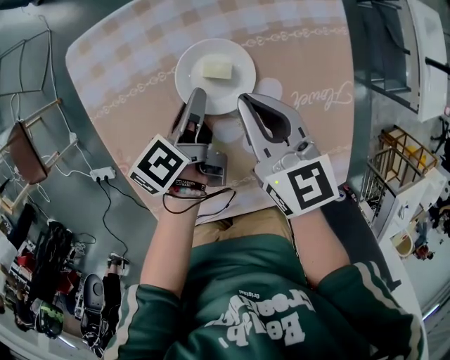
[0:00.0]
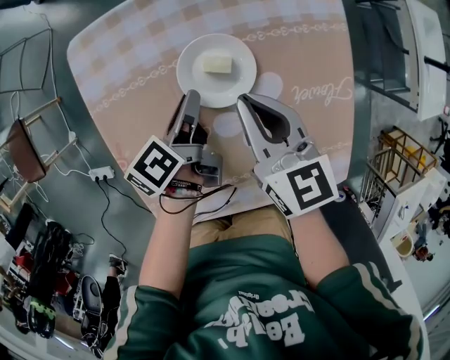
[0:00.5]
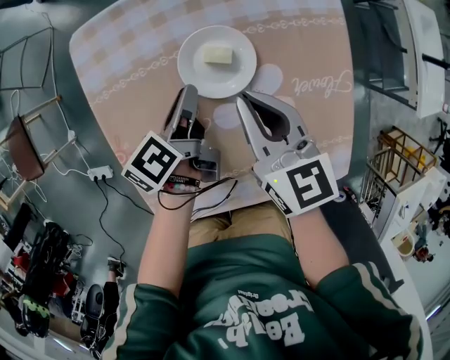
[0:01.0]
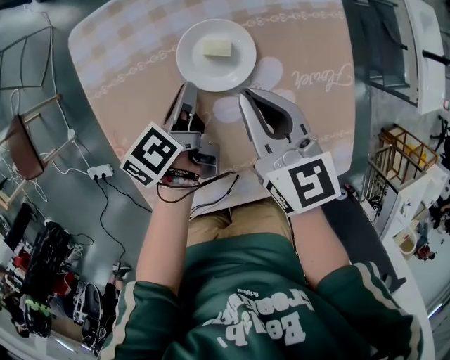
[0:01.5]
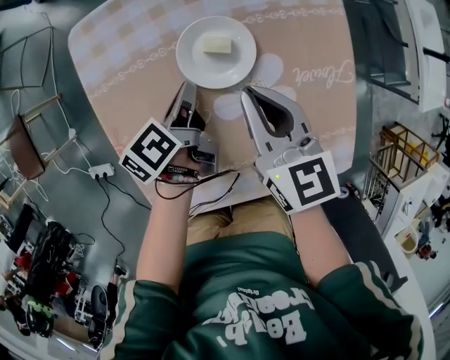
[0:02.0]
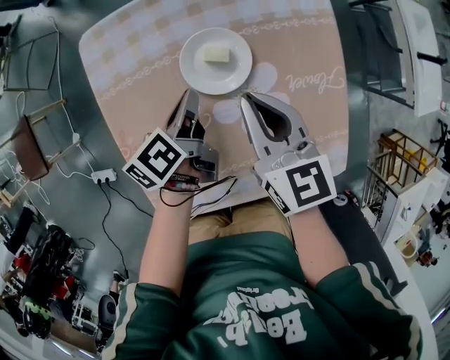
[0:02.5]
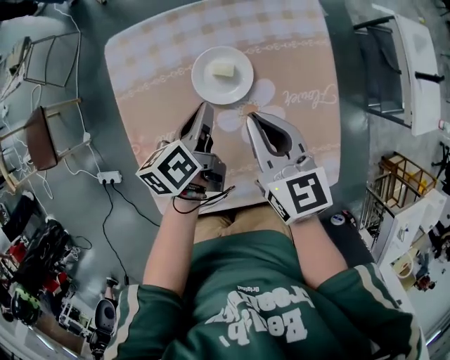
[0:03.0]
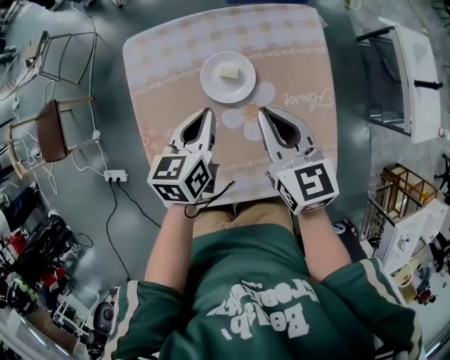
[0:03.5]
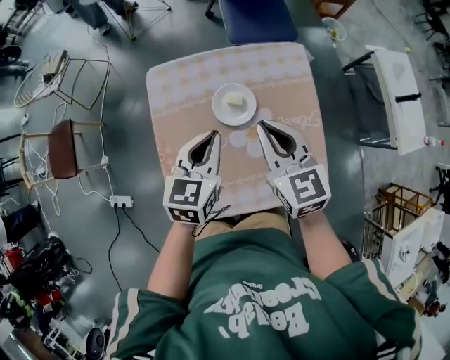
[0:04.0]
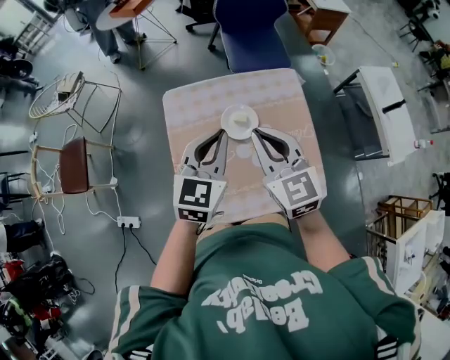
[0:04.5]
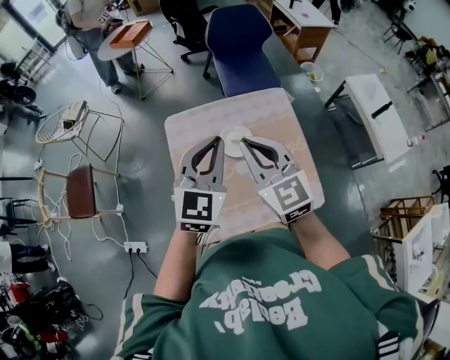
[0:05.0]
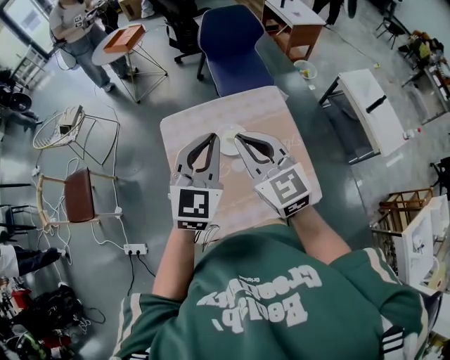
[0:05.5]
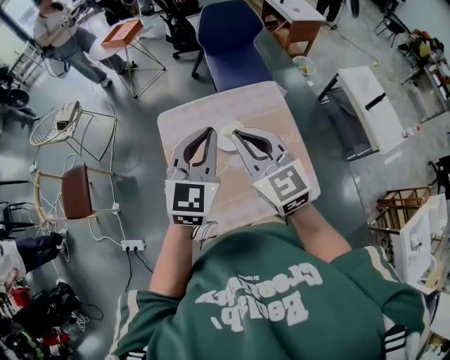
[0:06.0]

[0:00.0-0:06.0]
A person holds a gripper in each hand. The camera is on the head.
0:02.0 to 0:04.0: The right gripper goes about 15 cm upward.
0:04.0 to 0:06.0: The right gripper is displaced upward by approximately 15 cm.

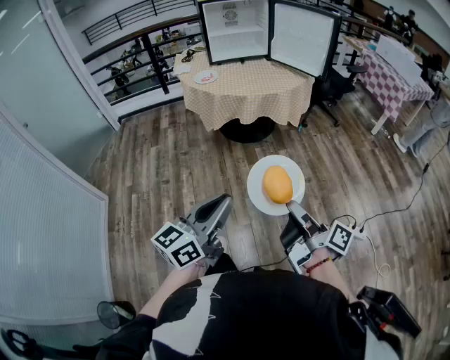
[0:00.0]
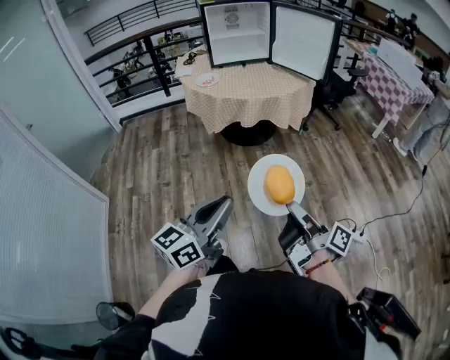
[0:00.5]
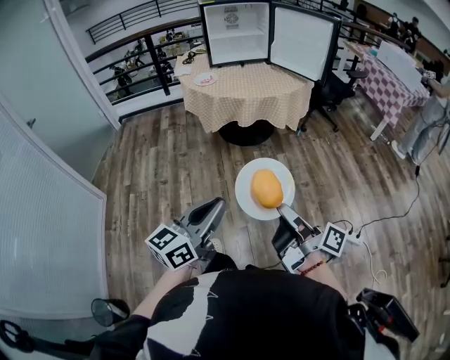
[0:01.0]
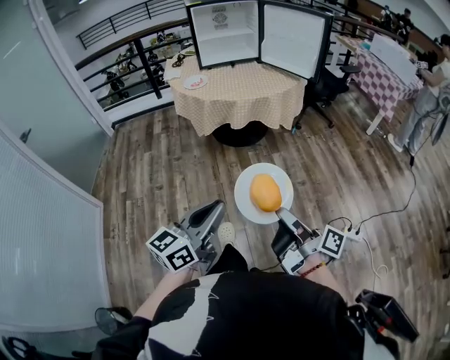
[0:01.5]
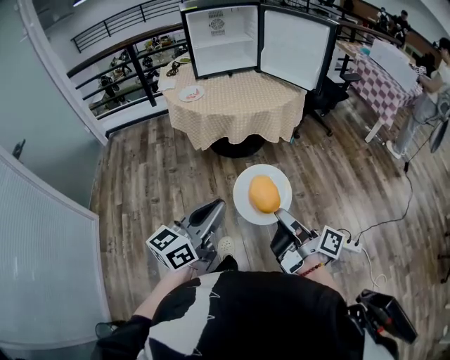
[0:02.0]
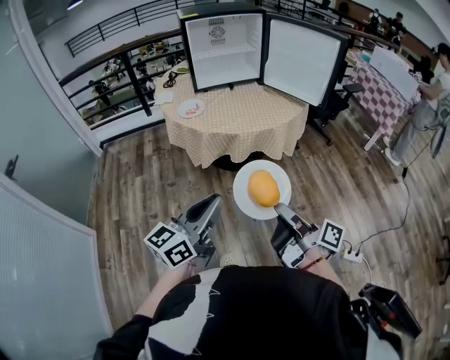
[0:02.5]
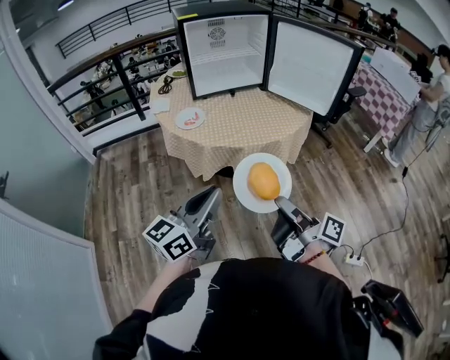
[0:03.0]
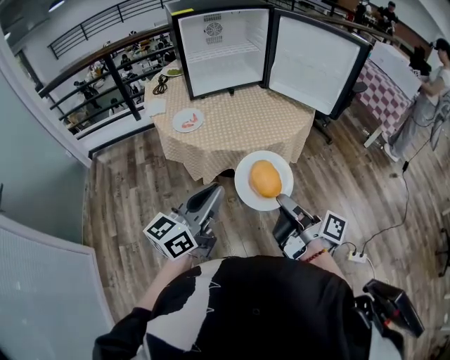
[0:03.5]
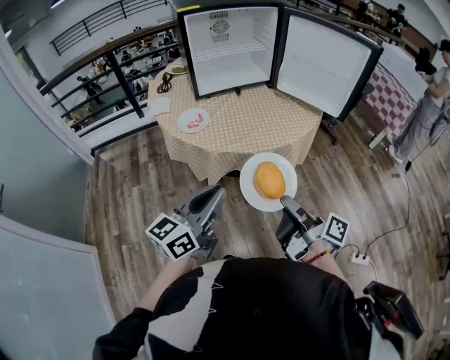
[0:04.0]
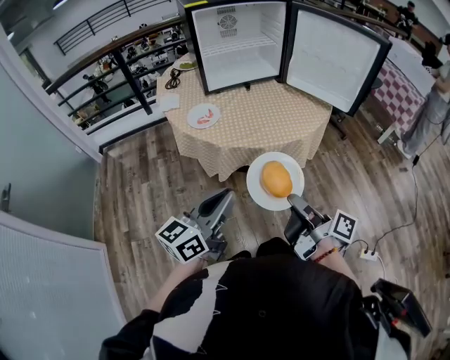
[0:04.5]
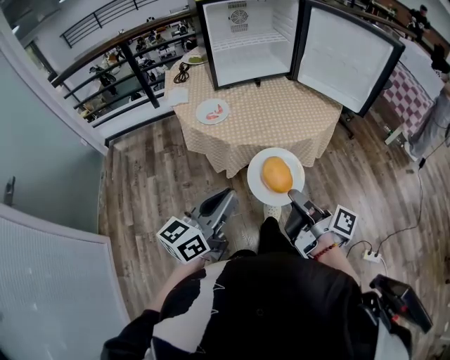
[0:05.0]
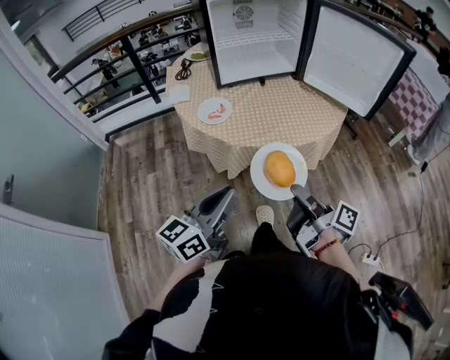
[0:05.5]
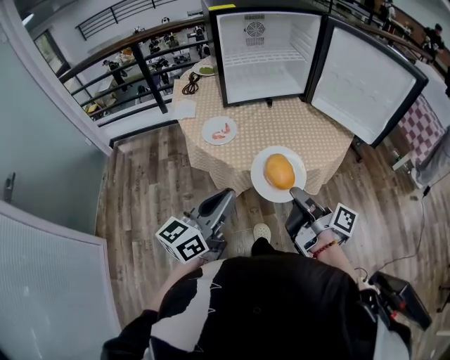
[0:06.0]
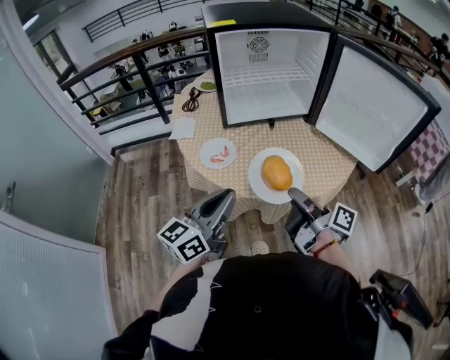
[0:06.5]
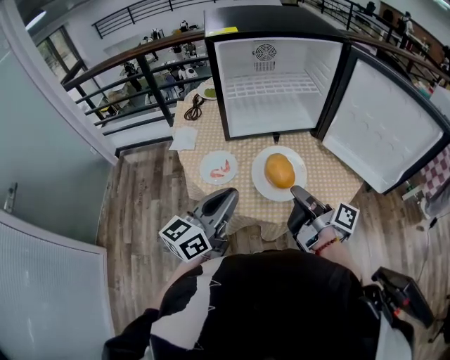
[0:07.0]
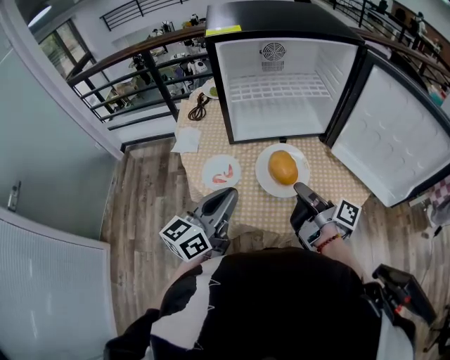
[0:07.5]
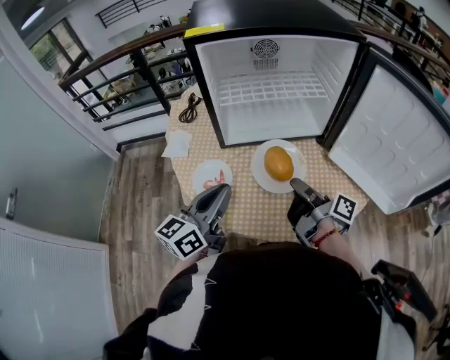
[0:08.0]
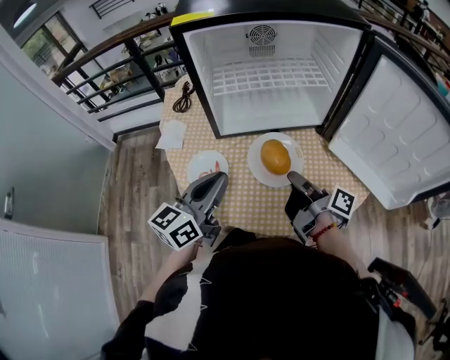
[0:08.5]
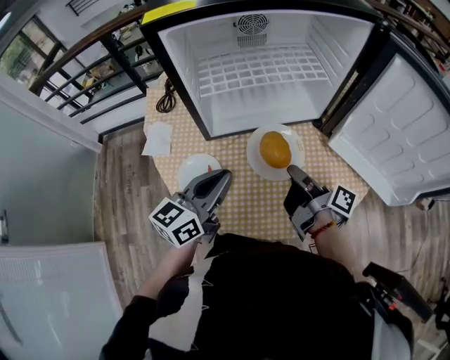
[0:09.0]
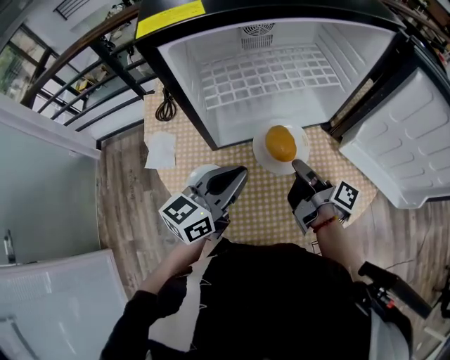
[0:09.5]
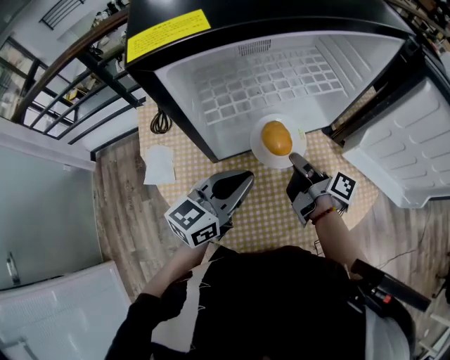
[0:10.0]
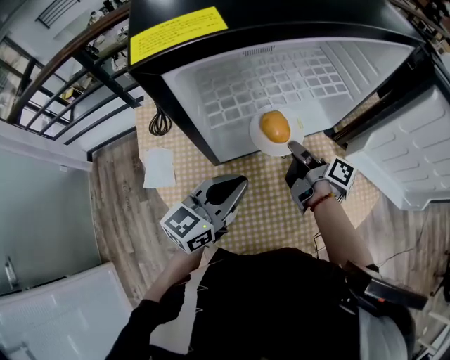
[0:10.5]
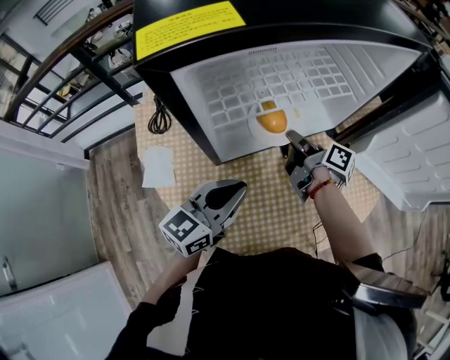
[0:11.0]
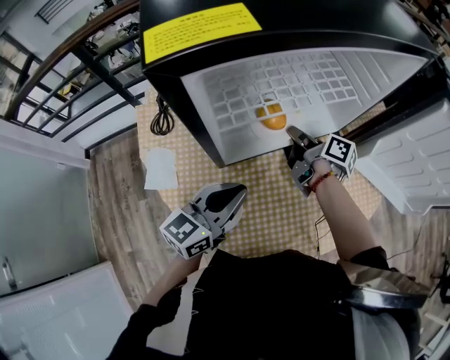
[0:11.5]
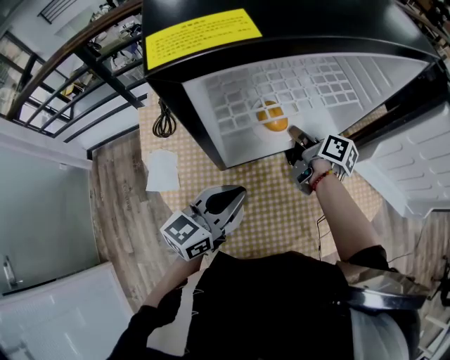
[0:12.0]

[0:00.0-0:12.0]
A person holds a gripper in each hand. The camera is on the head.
0:00.0 to 0:02.0: The grippers both shift forward by some 10 cm.
0:02.0 to 0:04.0: The two grippers go approximately 30 cm forward and to the left.
0:04.0 to 0:06.0: The left gripper heads forward, covering about 10 cm. The right gripper goes roughly 15 cm forward.
0:06.0 to 0:08.0: Both grippers travel together forward, approximately 30 cm.
0:08.0 to 0:10.0: The left gripper shifts about 15 cm forward, and turns by roughly 30 degrees. Meanwhile the right gripper travels forward and downward by some 15 cm.
0:10.0 to 0:12.0: The right gripper heads forward, covering some 10 cm. The left gripper moves roughly 5 cm.

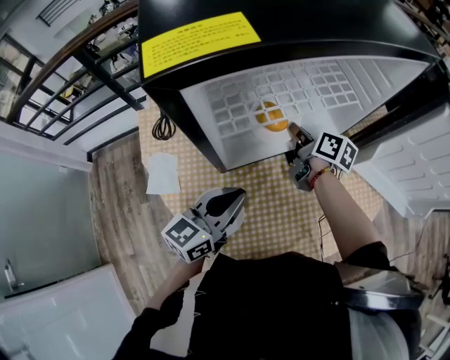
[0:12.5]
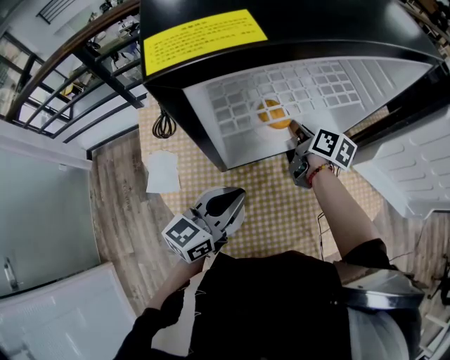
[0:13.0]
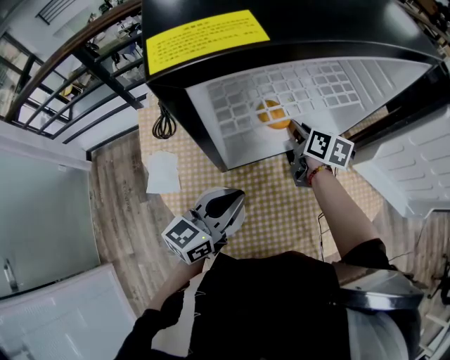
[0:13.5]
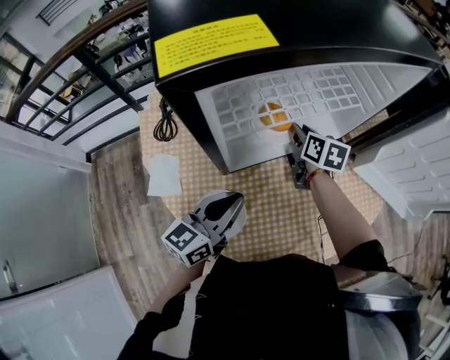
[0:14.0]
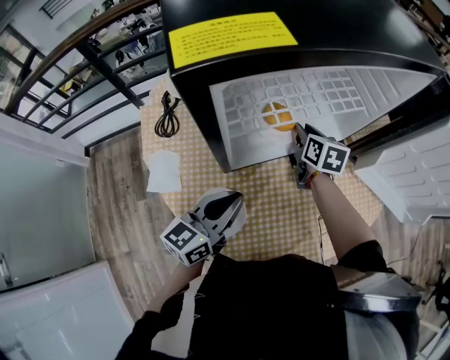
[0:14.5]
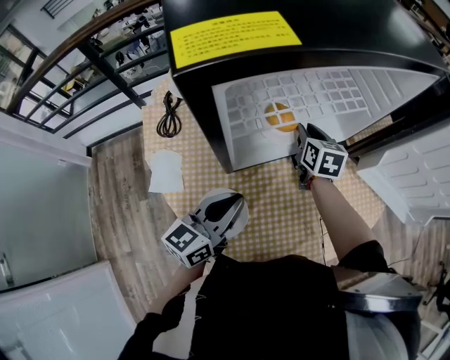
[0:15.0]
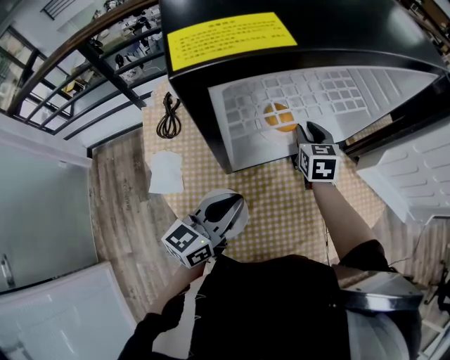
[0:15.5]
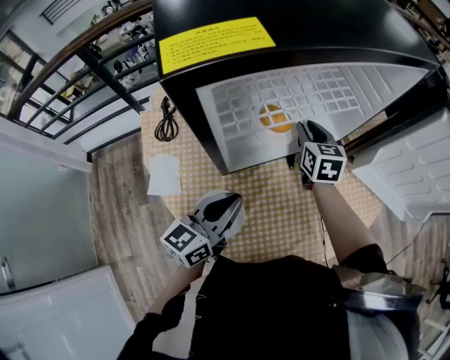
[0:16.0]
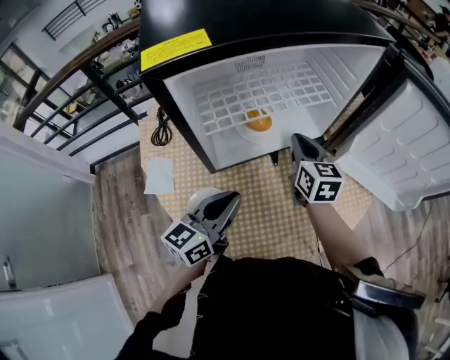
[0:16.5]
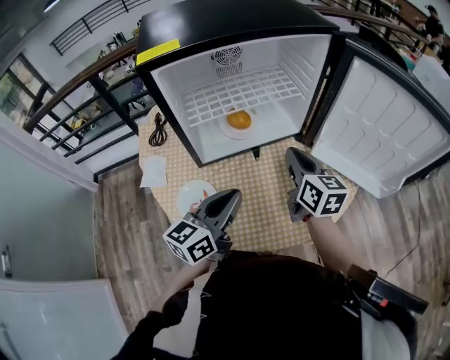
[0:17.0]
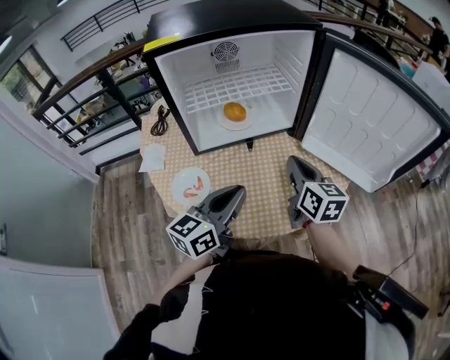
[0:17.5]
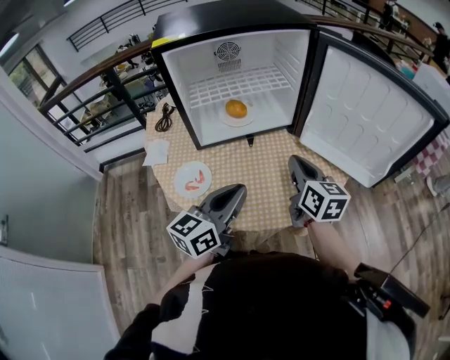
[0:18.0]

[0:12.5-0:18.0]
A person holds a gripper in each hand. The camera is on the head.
0:12.5 to 0:14.5: The right gripper changes its angle by about 30 degrees, and opens up.
0:16.0 to 0:18.0: The left gripper travels to the right, backward and upward by some 25 cm, while the right gripper shifts some 30 cm backward, to the right and upward, changes its angle by some 20 degrees, and closes up.

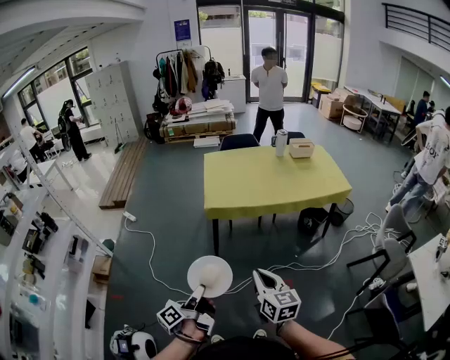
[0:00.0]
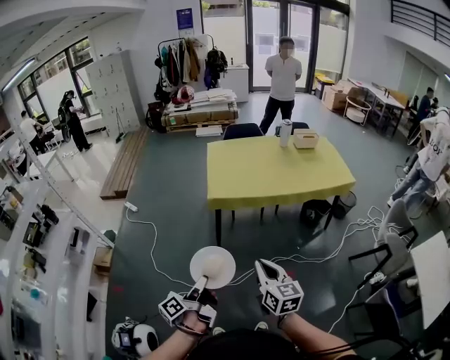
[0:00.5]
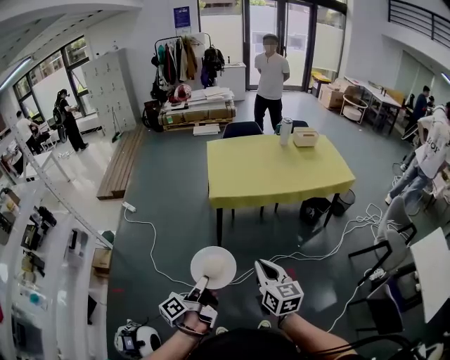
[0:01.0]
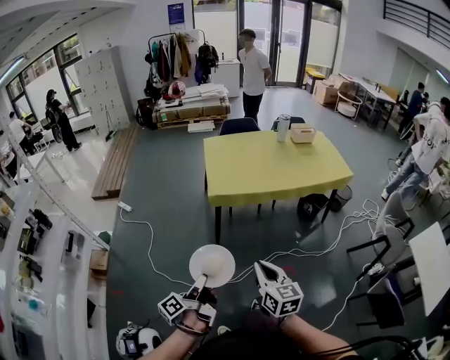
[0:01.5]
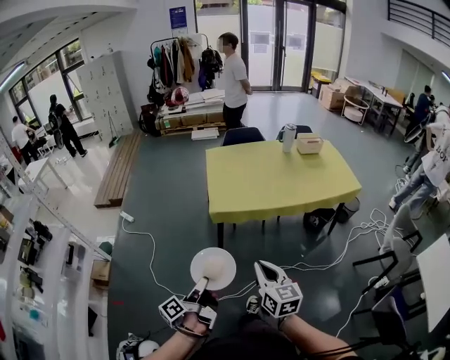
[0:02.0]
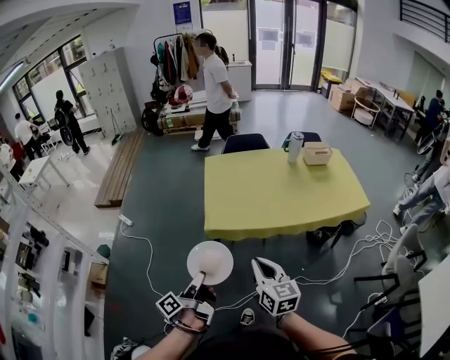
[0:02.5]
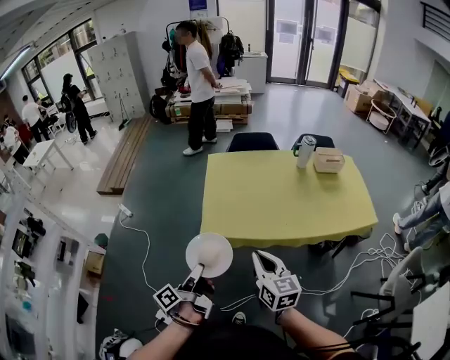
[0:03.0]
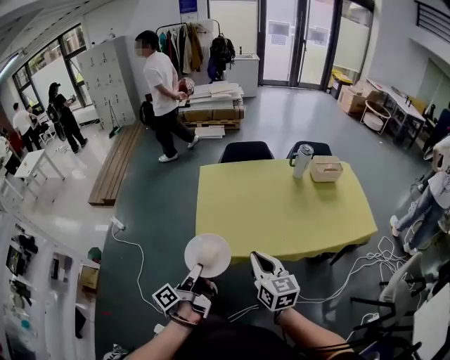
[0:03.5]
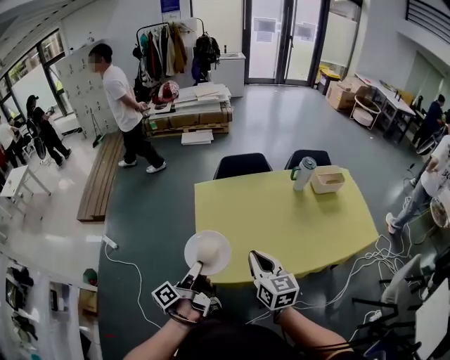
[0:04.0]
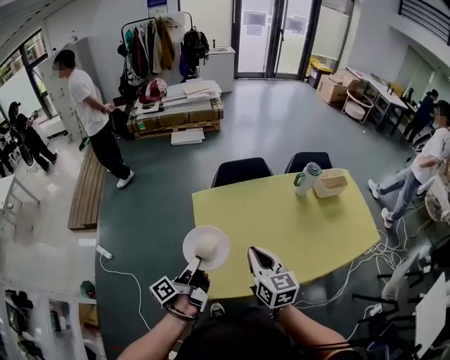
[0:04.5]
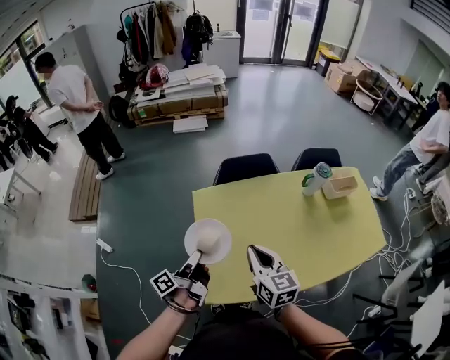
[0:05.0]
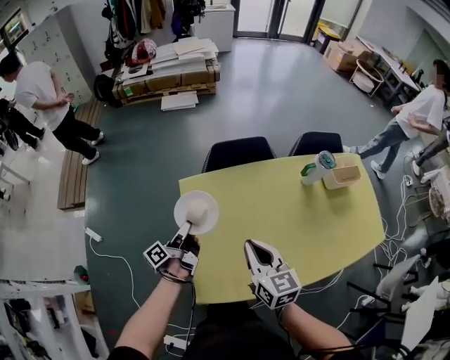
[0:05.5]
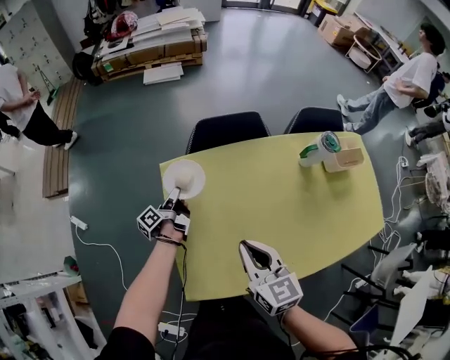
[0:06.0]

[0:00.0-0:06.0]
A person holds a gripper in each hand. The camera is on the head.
0:00.0 to 0:02.0: The two grippers go some 15 cm forward.
0:02.0 to 0:04.0: The pair of grippers is taken forward, about 50 cm.
0:04.0 to 0:06.0: The left gripper heads forward and downward, covering approximately 50 cm, while the right gripper heads forward and downward, covering about 25 cm.
